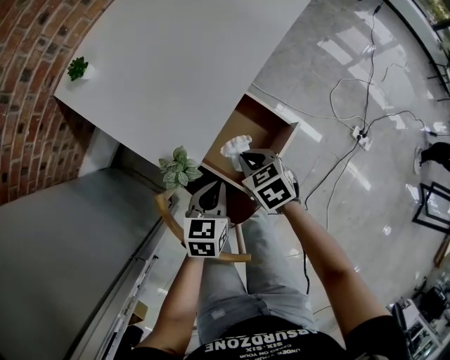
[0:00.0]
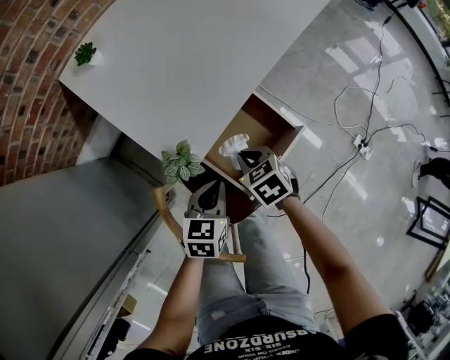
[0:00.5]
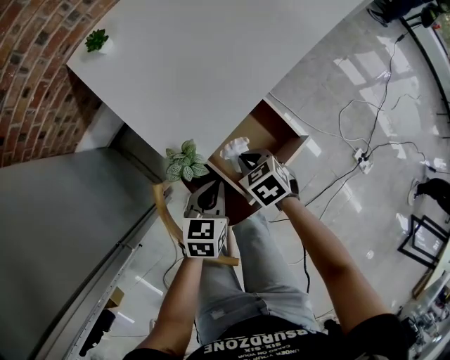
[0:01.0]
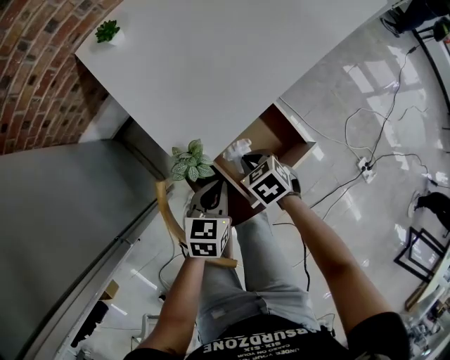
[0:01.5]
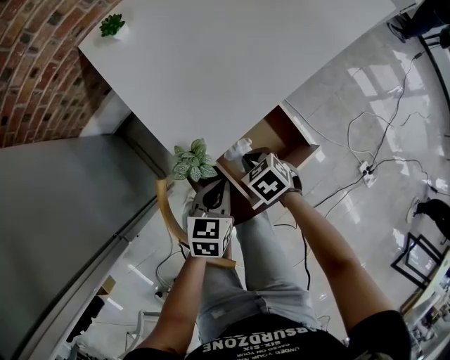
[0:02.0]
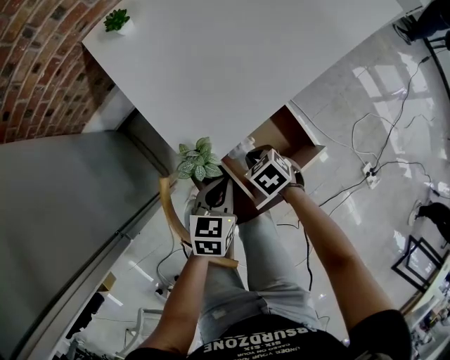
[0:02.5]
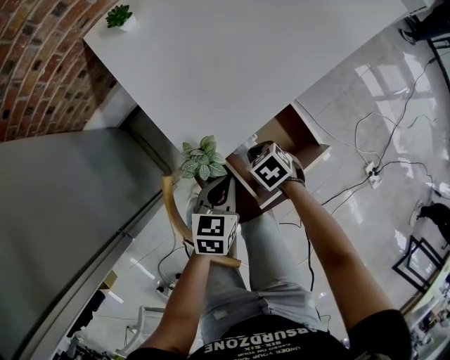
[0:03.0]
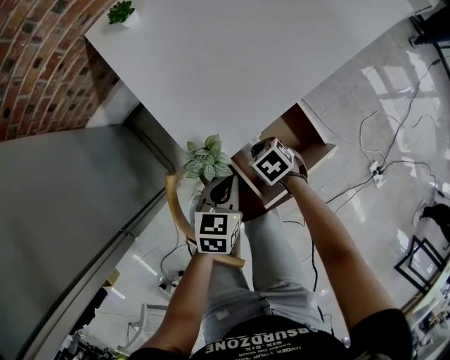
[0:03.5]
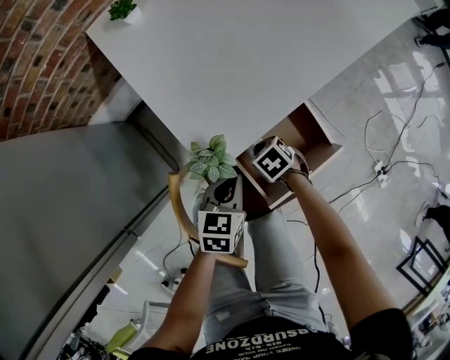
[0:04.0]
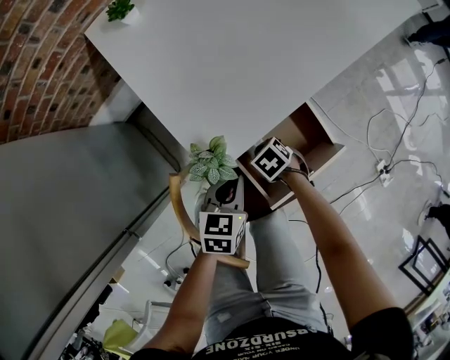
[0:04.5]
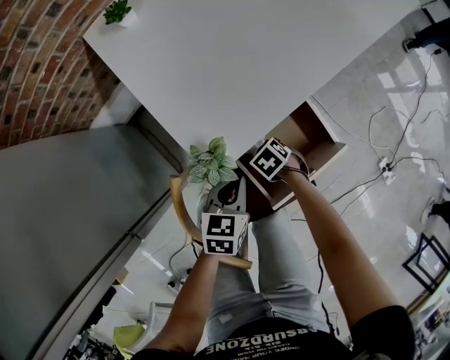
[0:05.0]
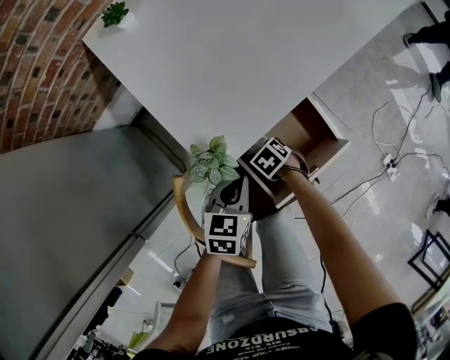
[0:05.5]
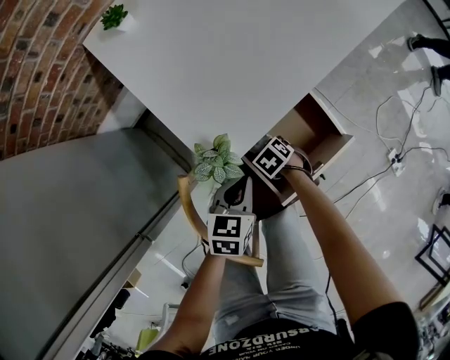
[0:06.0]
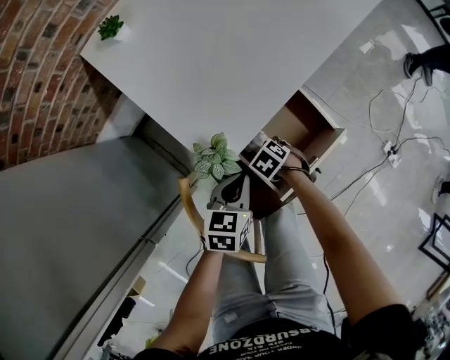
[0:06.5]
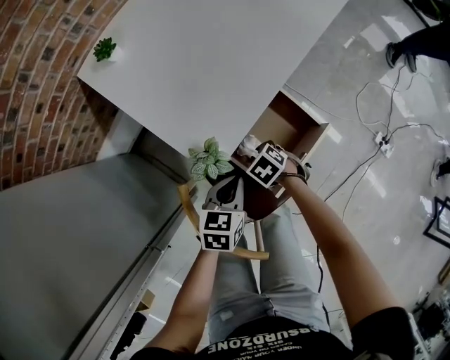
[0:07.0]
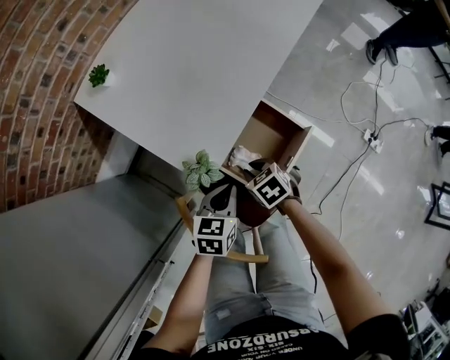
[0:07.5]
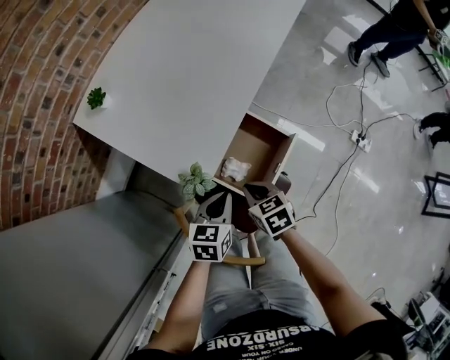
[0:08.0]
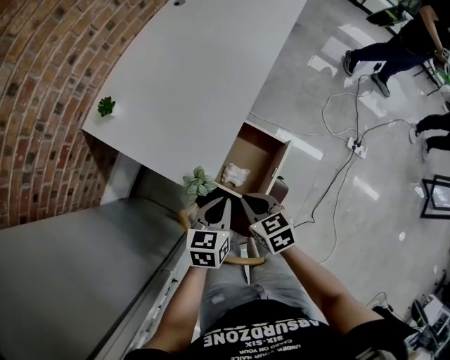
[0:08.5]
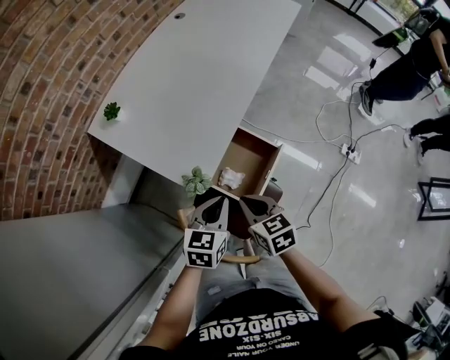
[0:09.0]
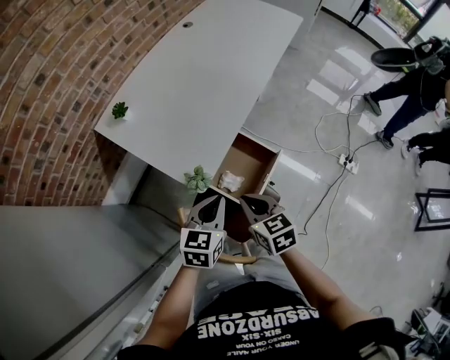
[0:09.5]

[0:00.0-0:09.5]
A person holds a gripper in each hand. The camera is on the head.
0:00.0 to 0:02.0: The right gripper shifts some 5 cm downward, and turns by roughly 30 degrees.
0:02.0 to 0:04.0: The right gripper goes roughly 10 cm downward.
0:04.0 to 0:05.5: The right gripper travels downward by approximately 5 cm.
0:05.5 to 0:07.5: The left gripper is displaced upward by approximately 5 cm, while the right gripper travels upward by approximately 15 cm, and turns by some 30 degrees.
0:07.5 to 0:09.5: Both grippers travel together upward, approximately 20 cm. The right gripper changes its angle by roughly 30 degrees.

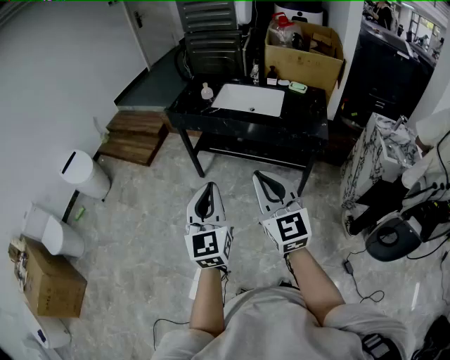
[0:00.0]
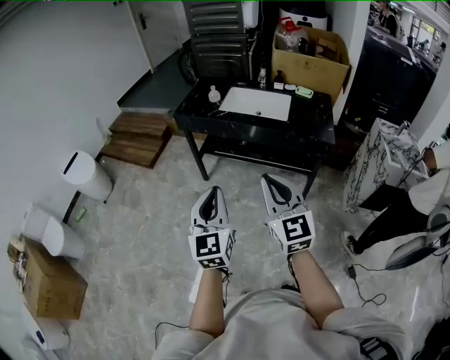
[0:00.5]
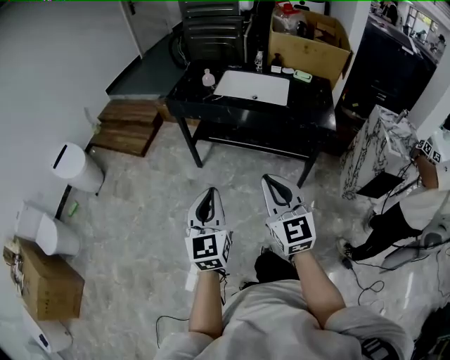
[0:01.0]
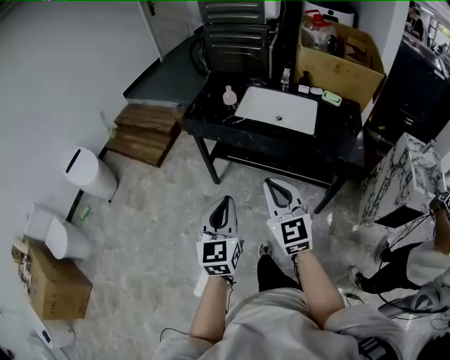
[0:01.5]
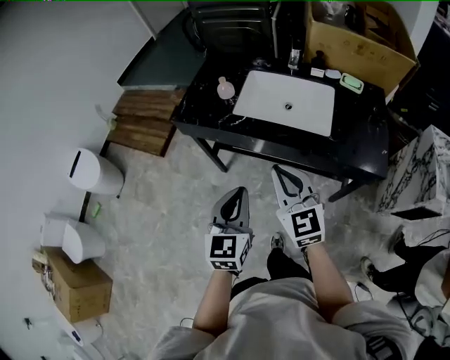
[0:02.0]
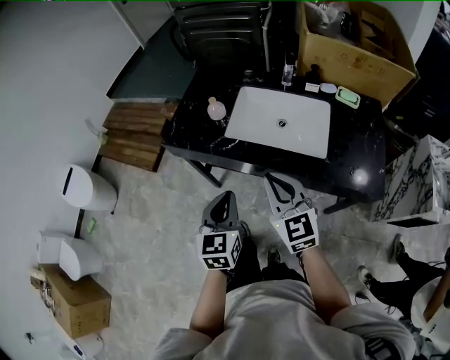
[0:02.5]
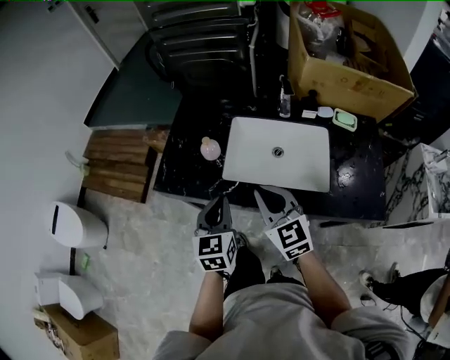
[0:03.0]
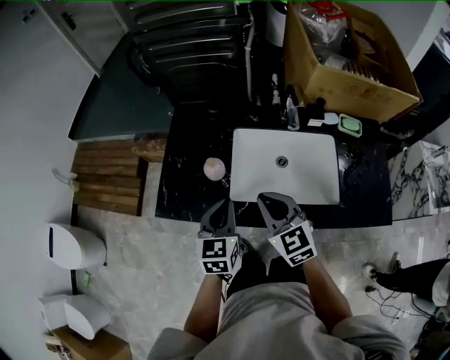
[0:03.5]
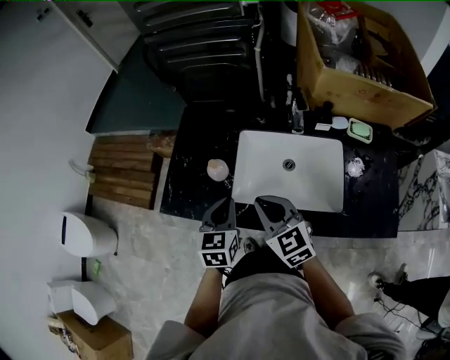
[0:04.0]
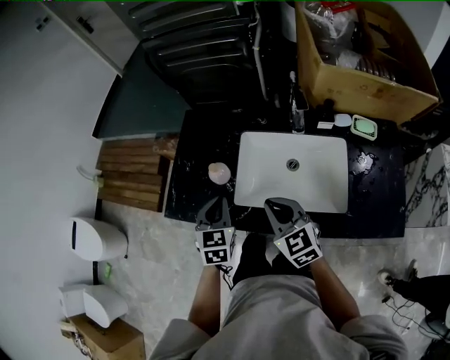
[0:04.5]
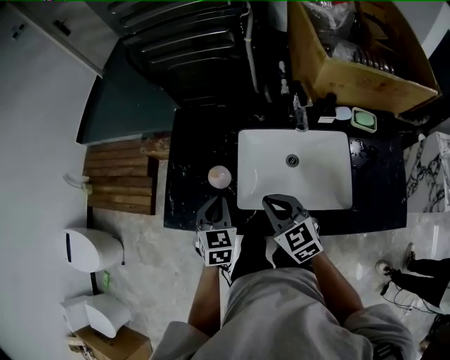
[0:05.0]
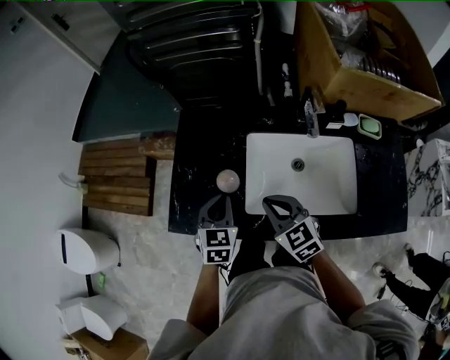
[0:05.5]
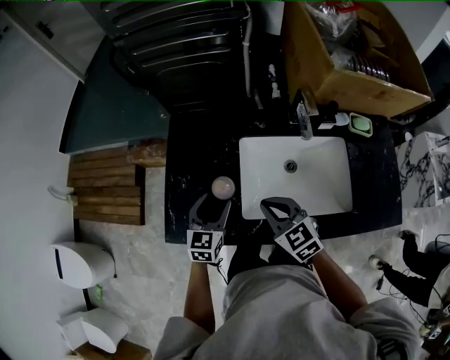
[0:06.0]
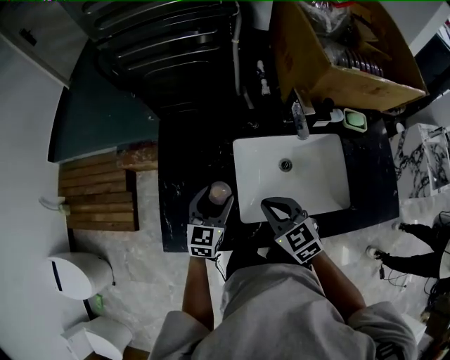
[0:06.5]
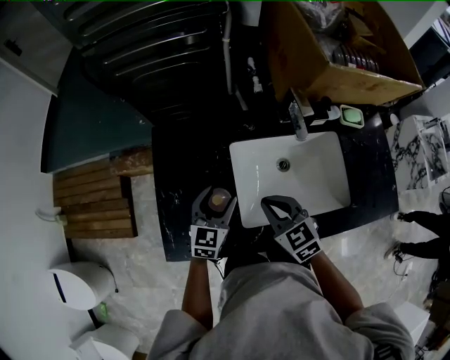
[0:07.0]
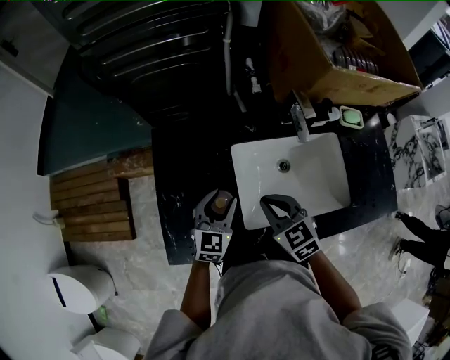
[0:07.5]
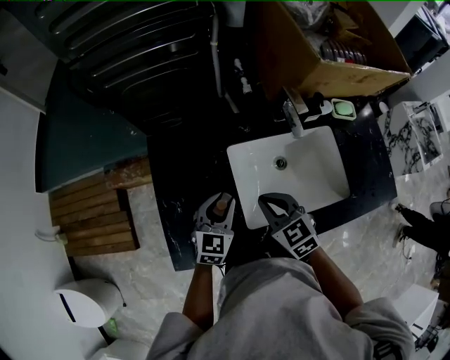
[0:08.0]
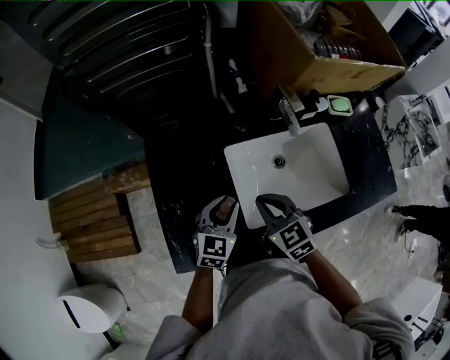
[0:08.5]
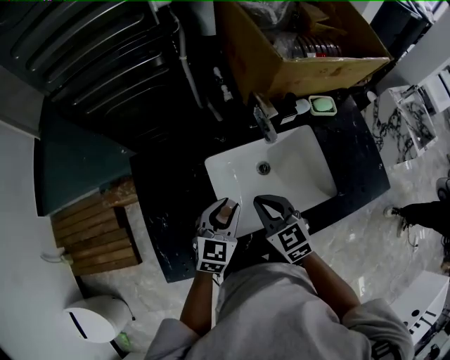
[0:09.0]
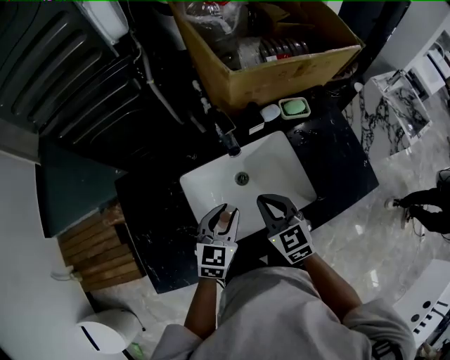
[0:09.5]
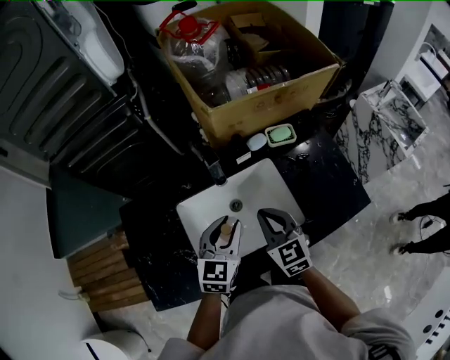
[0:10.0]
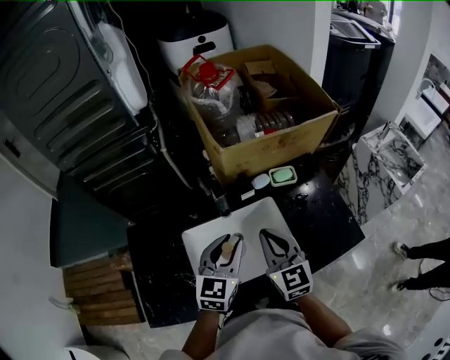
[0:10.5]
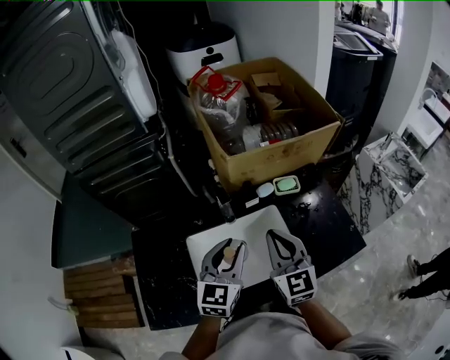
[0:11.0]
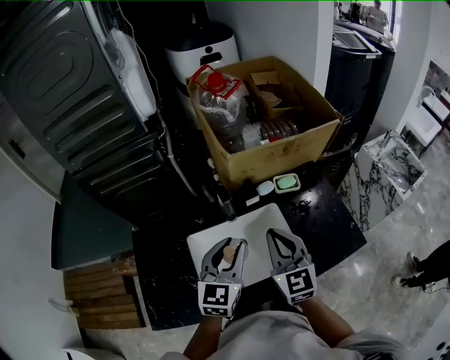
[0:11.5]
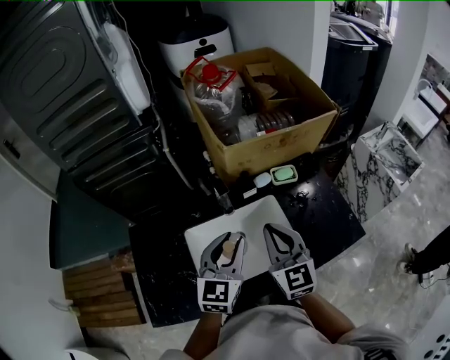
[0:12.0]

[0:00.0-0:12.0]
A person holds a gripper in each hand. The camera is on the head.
0:00.0 to 0:02.0: The grippers both shift forward by about 35 cm.
0:02.0 to 0:04.0: The grippers both shift forward by some 35 cm.
0:04.0 to 0:06.0: The right gripper is displaced forward and downward by roughly 10 cm. The left gripper heads forward, downward and to the left, covering roughly 15 cm, and opens.
0:06.0 to 0:08.0: Both grippers travel together forward, some 5 cm. The left gripper closes its fingers.
0:08.0 to 0:10.0: The right gripper moves to the right, some 25 cm, and turns by approximately 30 degrees; the left gripper moves to the right and upward, about 25 cm.
0:10.0 to 0:12.0: The grippers both shift upward by roughly 10 cm.

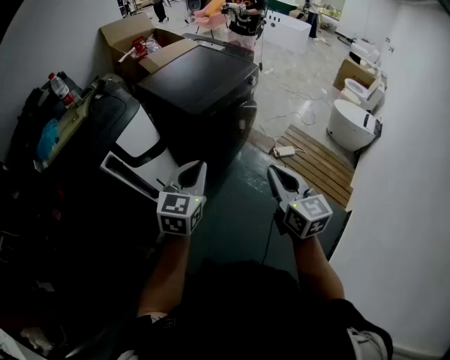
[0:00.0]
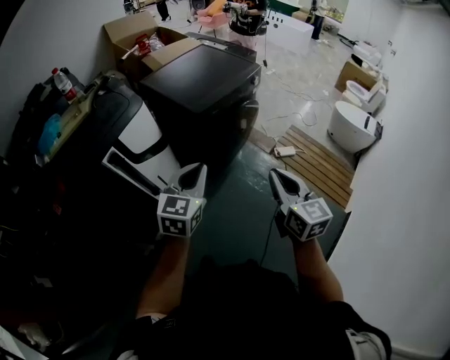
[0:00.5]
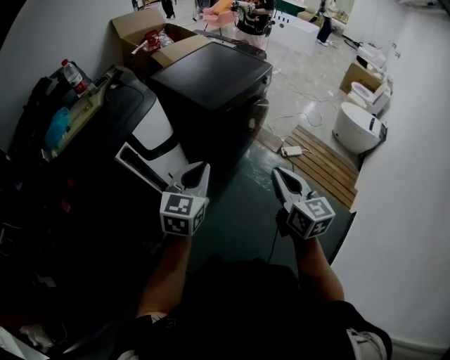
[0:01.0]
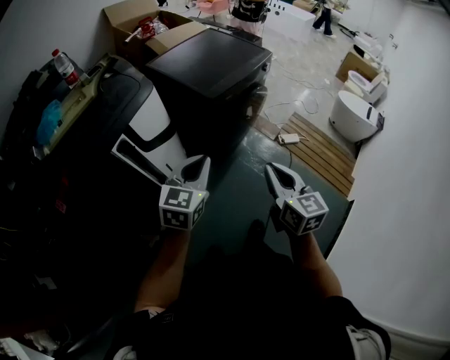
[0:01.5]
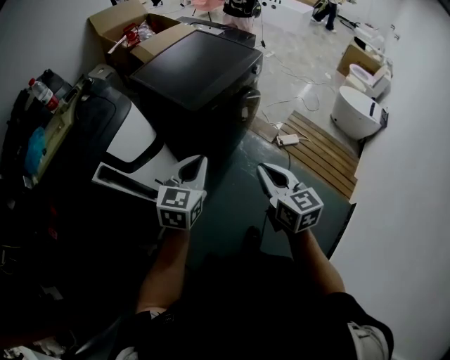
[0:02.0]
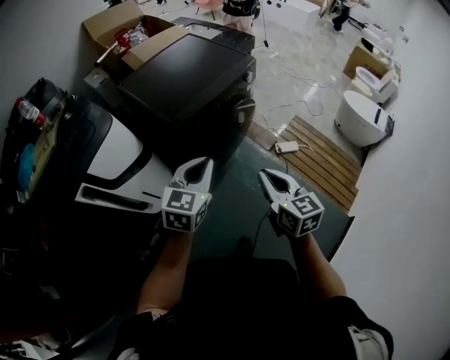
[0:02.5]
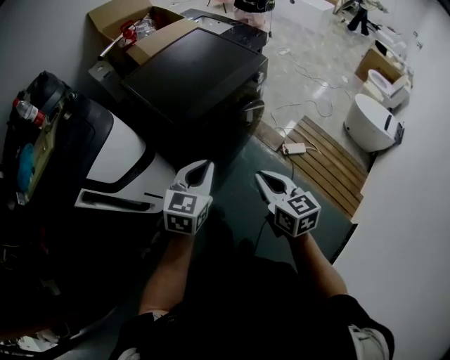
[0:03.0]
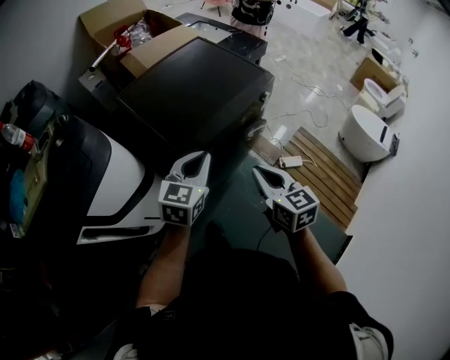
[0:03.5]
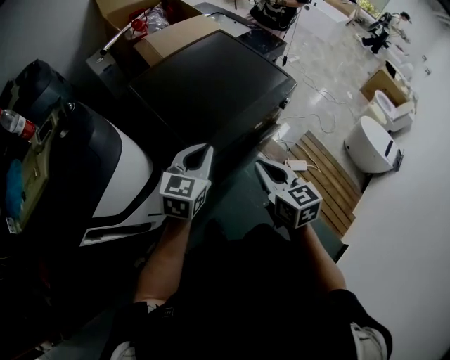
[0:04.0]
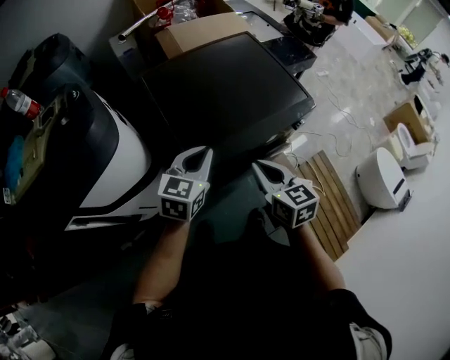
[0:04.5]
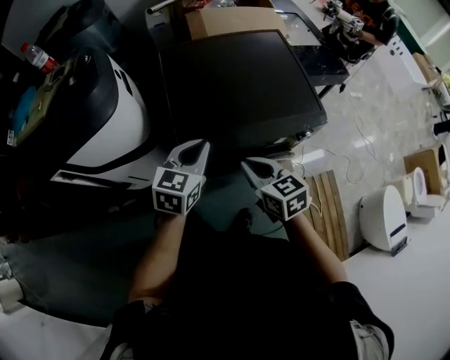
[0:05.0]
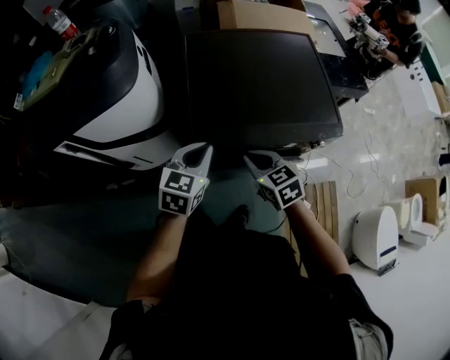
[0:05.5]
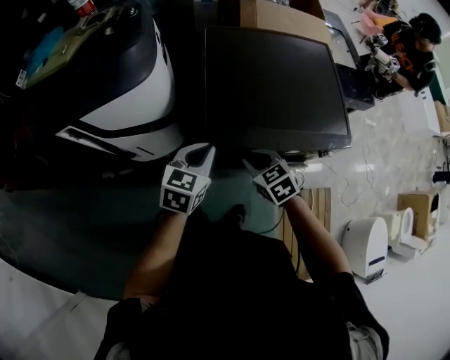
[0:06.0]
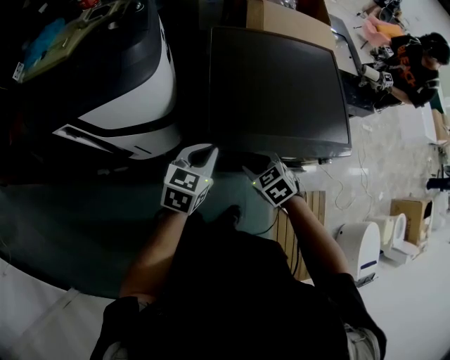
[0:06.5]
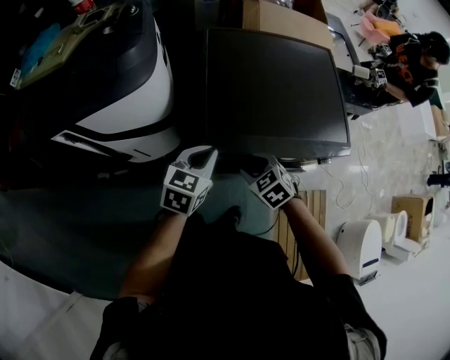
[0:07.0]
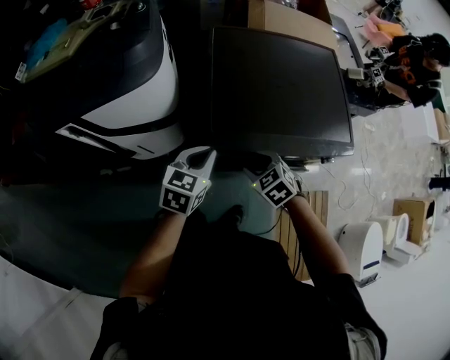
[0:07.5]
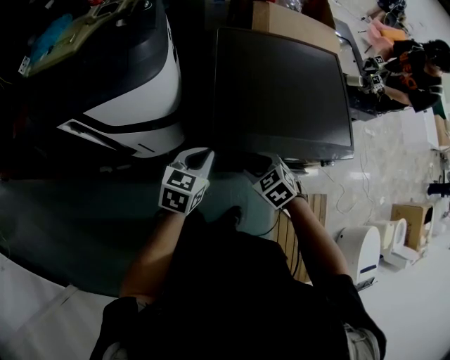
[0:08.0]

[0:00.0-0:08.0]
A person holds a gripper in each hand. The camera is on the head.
0:00.0 to 0:02.0: The right gripper moves forward and downward, about 10 cm, and reaches approximately 10 cm to the left, then returns; the left gripper is displaced forward by about 10 cm.
0:02.0 to 0:04.0: Both grippers move forward, about 35 cm.
0:04.0 to 0:06.0: The right gripper heads downward, covering roughly 15 cm, and turns by about 60 degrees, while the left gripper goes approximately 10 cm downward, and turns by some 40 degrees.
0:06.0 to 0:08.0: The right gripper opens.
